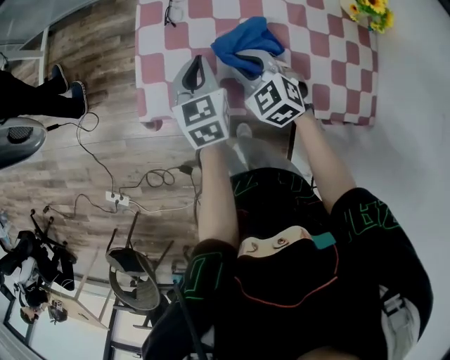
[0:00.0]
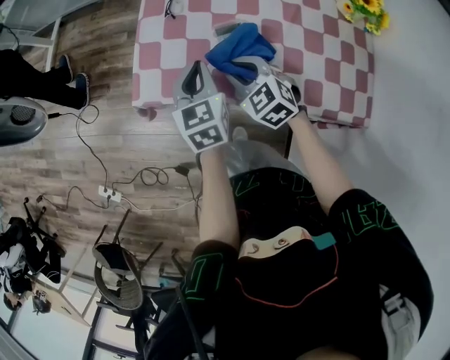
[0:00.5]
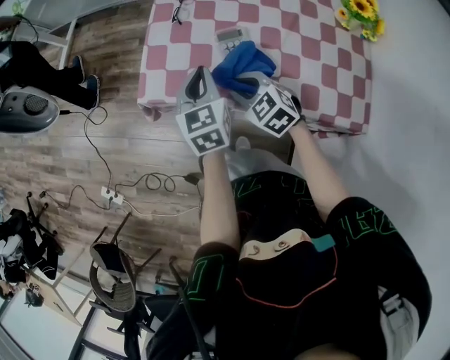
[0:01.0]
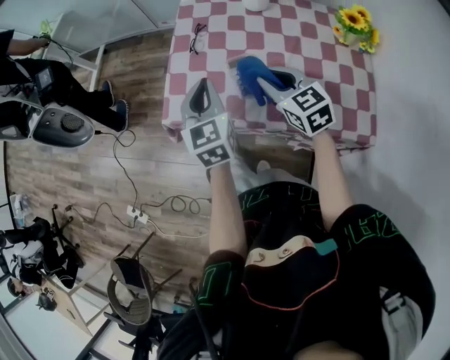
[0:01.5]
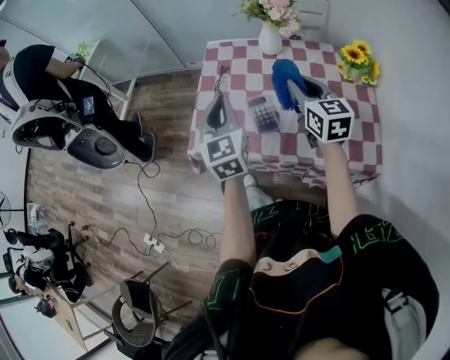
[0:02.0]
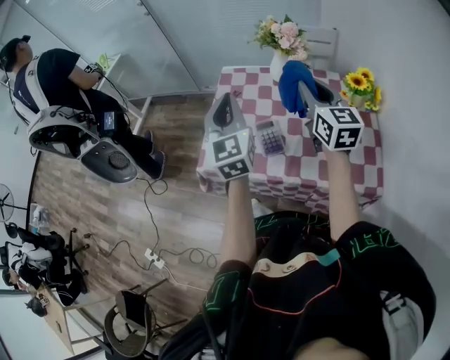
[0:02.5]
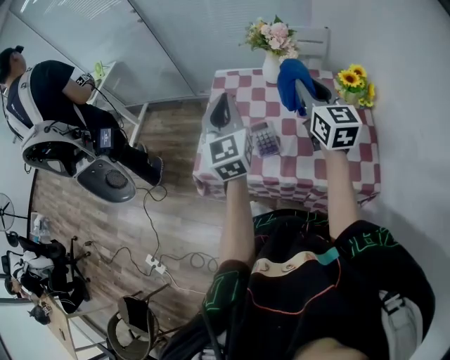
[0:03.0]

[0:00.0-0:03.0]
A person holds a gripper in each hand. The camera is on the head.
0:00.0 to 0:01.5: The left gripper goes some 15 cm upward and backward; the right gripper heads upward, to the right and backward, covering some 15 cm, and rotates about 30 degrees.
0:01.5 to 0:03.0: The left gripper heads upward, covering roughly 15 cm, and turns by about 20 degrees, while the right gripper heads upward and to the right, covering about 20 cm, and swivels approximately 30 degrees.

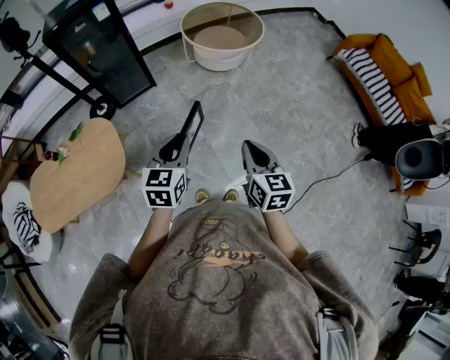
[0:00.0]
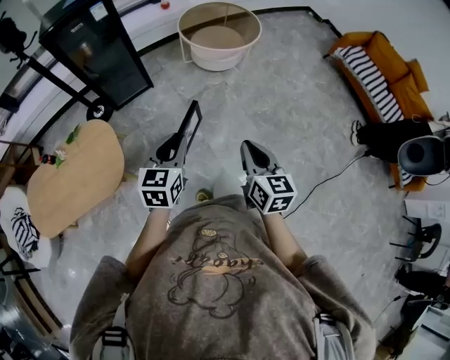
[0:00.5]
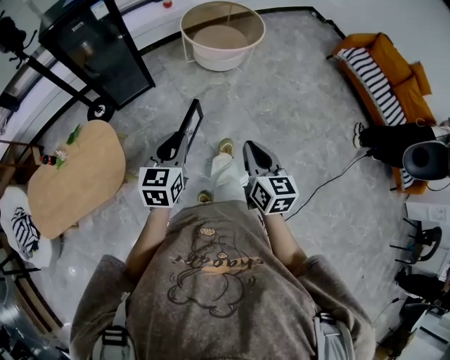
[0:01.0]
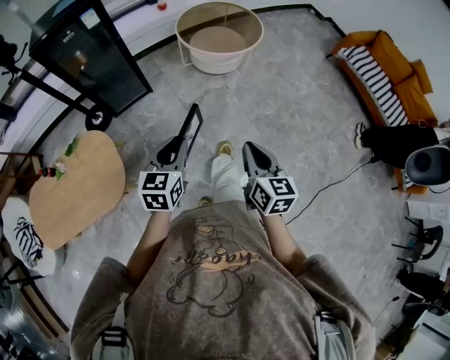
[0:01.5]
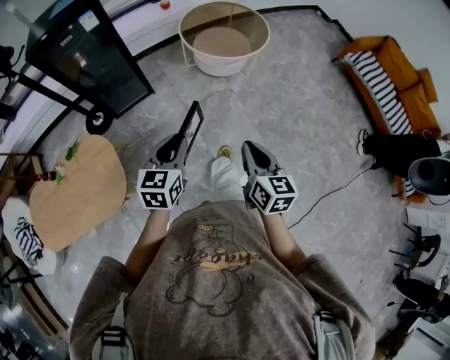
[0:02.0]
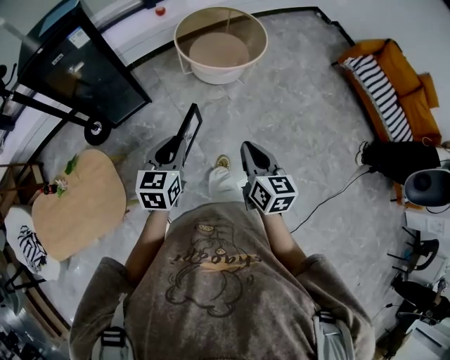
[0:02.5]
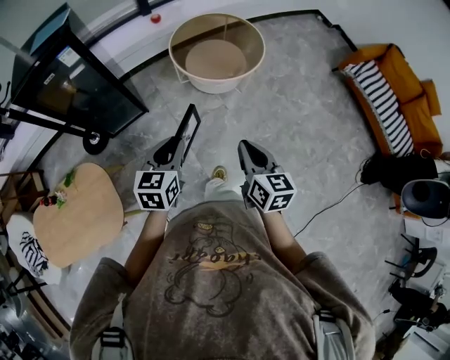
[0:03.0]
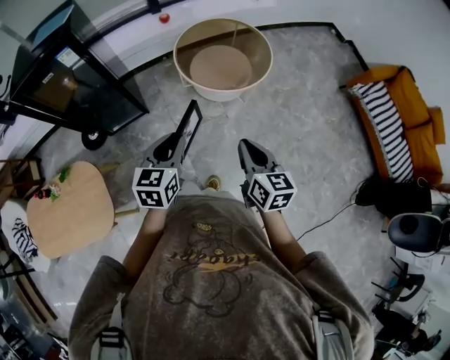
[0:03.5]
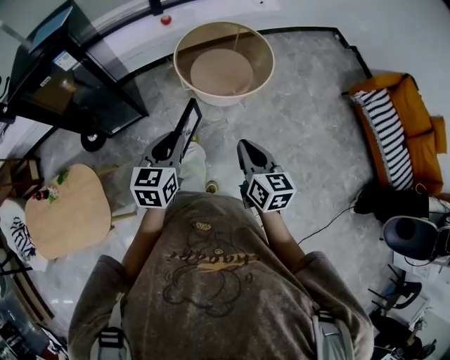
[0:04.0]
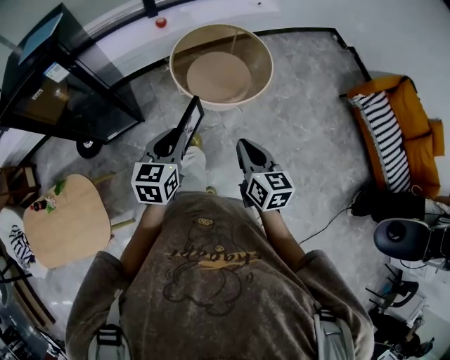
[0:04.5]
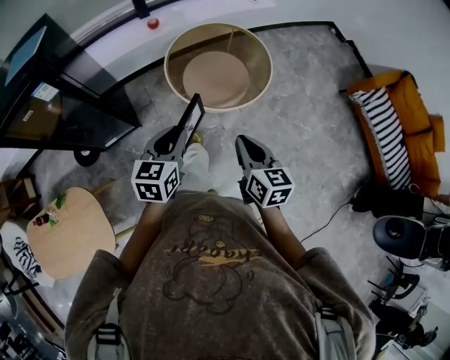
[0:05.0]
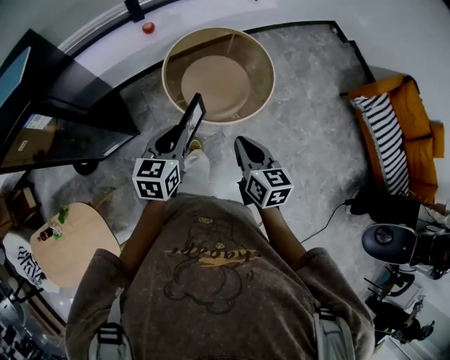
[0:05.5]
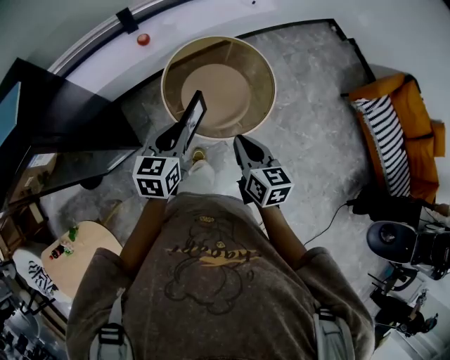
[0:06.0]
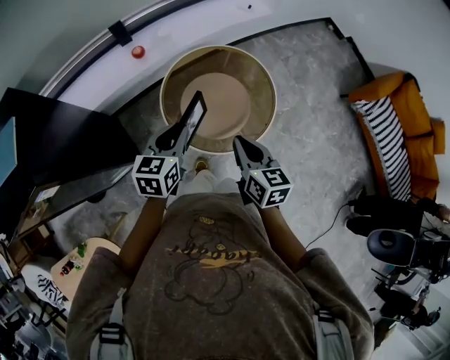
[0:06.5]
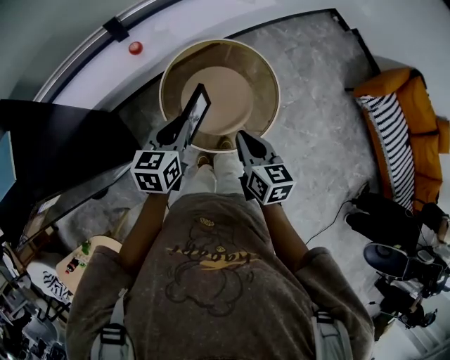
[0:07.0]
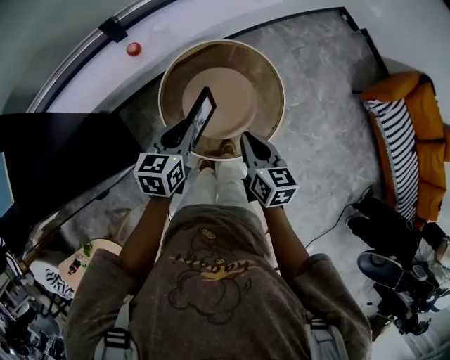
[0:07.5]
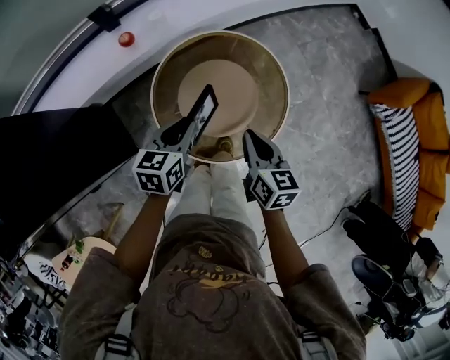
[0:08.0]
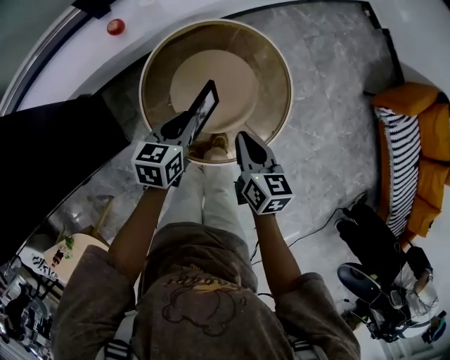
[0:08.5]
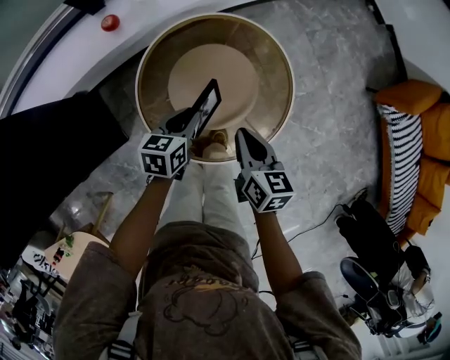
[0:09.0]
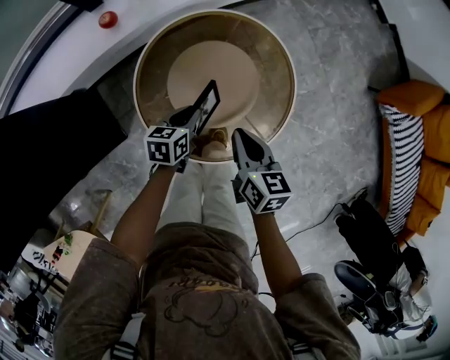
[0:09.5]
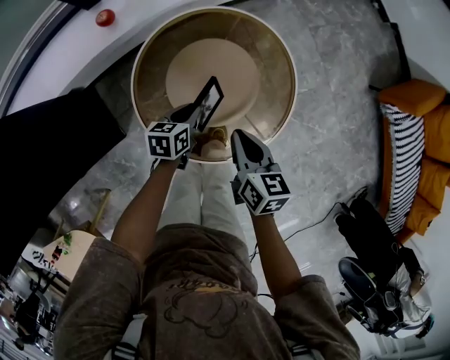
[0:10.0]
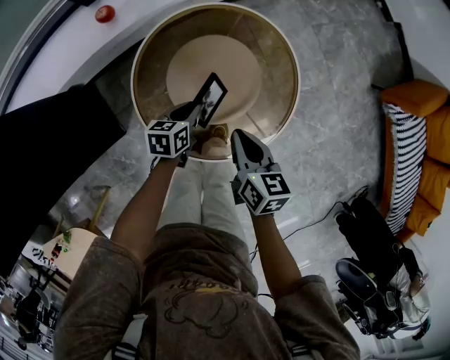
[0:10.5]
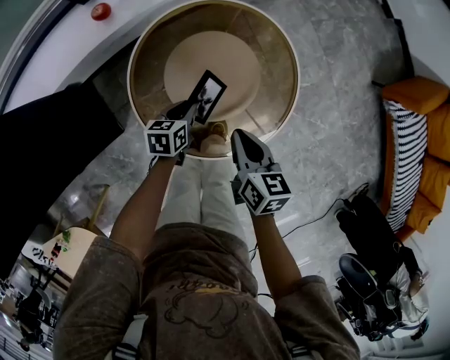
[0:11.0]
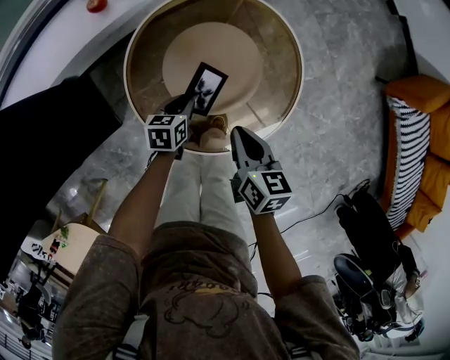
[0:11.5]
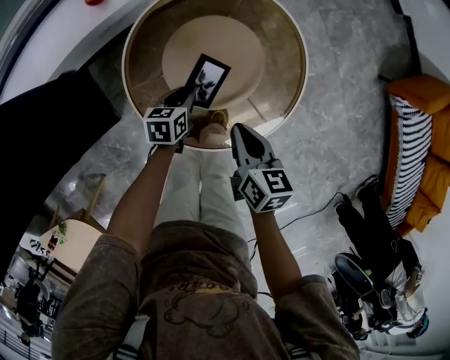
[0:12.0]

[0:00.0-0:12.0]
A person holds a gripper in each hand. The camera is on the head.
0:00.0 to 0:02.0: Both grippers move forward, approximately 15 cm.
0:02.0 to 0:04.0: Both grippers move forward, approximately 25 cm.
0:04.0 to 0:06.0: Both grippers travel together forward, some 35 cm.
0:06.0 to 0:08.0: The grippers both shift forward and downward by approximately 20 cm.
0:08.0 to 0:10.0: The right gripper heads downward, covering approximately 10 cm, while the left gripper travels downward by about 20 cm.
0:10.0 to 0:12.0: The right gripper ends up about 5 cm from where it was; the left gripper moves downward, some 5 cm.

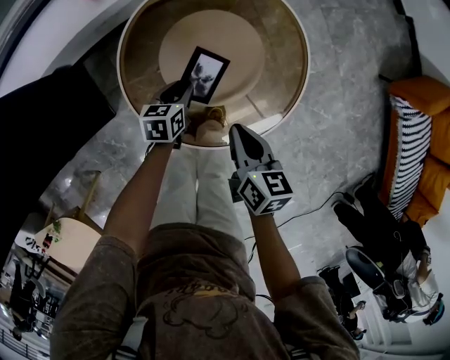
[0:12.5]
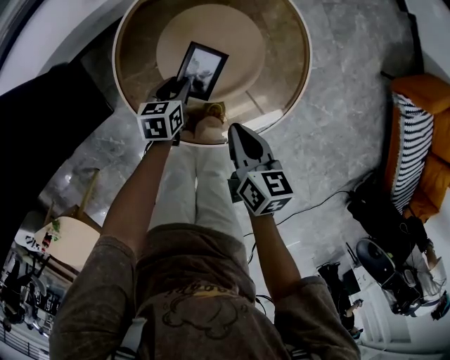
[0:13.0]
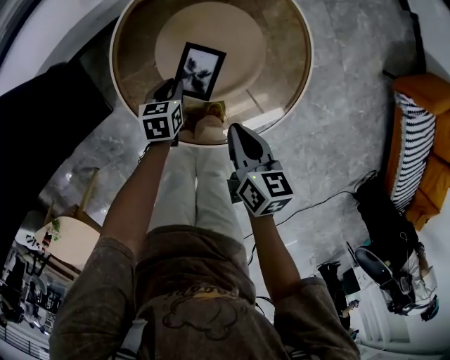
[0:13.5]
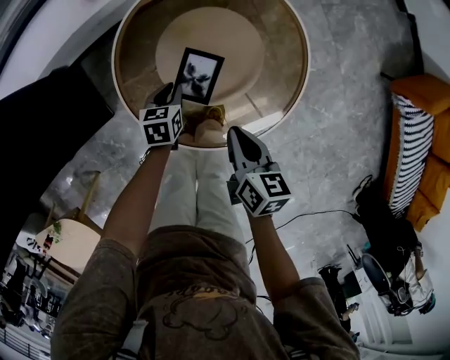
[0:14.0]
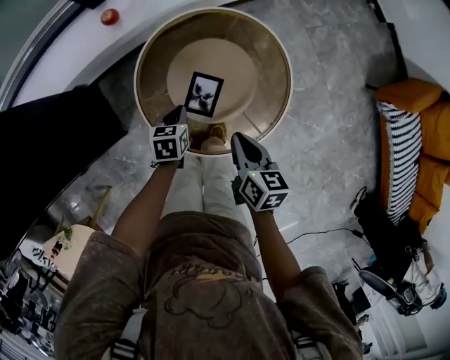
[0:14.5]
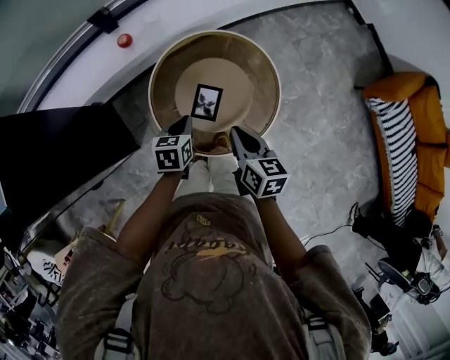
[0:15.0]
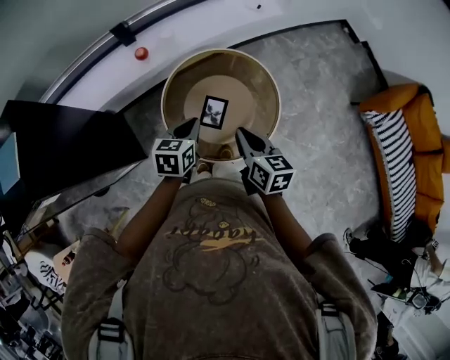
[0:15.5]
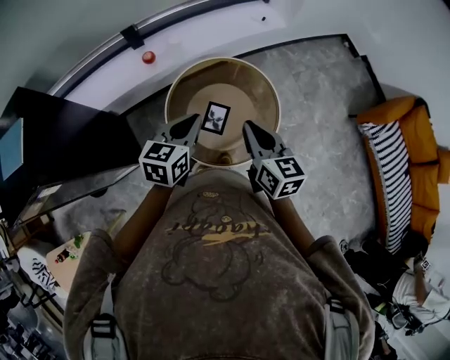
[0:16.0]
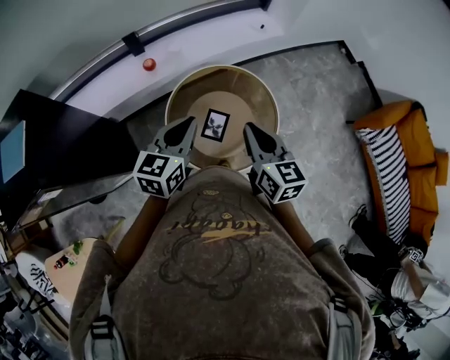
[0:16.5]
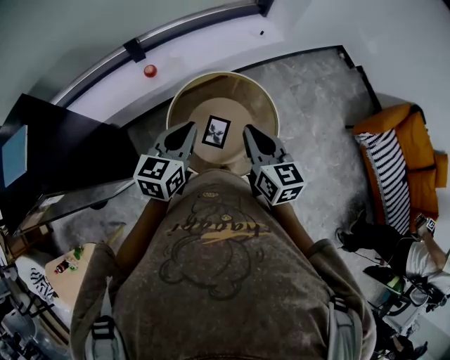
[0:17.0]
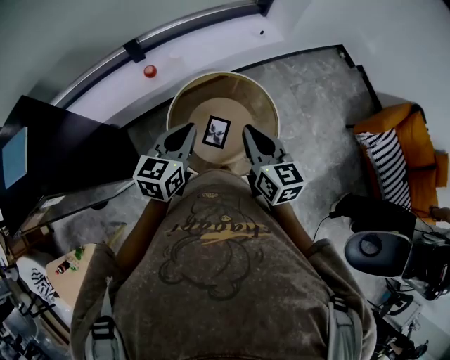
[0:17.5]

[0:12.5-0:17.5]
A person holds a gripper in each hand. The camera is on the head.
0:12.5 to 0:15.0: Both grippers travel together upward, roughly 20 cm. The left gripper closes.
0:15.0 to 0:17.5: The grippers both shift upward by approximately 20 cm. The left gripper turns by some 30 degrees. The right gripper rotates approximately 20 degrees.

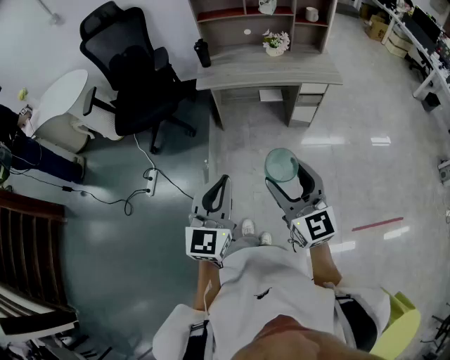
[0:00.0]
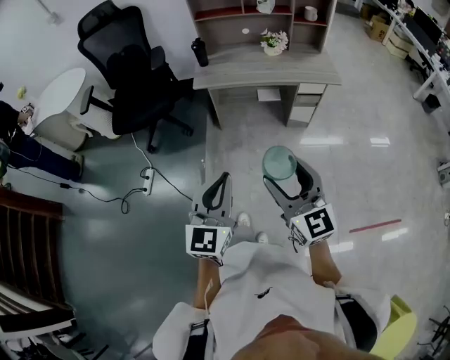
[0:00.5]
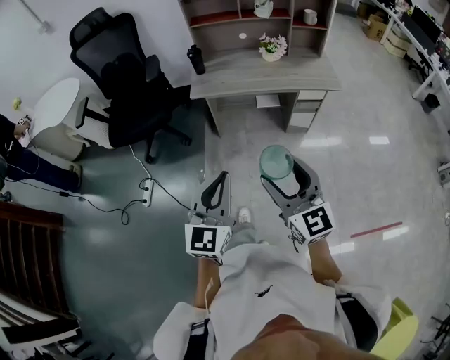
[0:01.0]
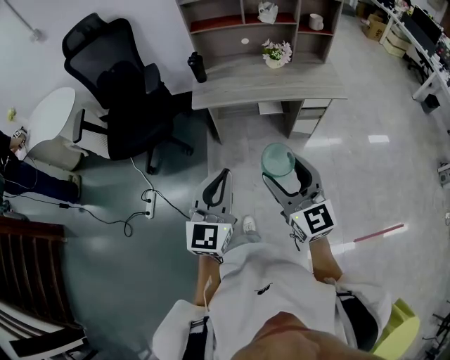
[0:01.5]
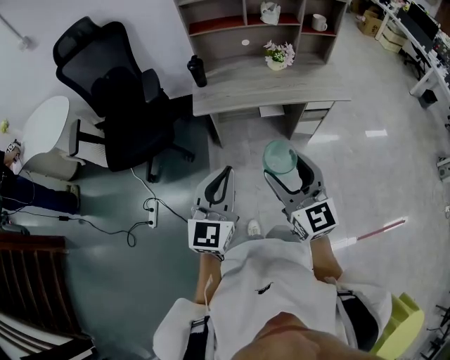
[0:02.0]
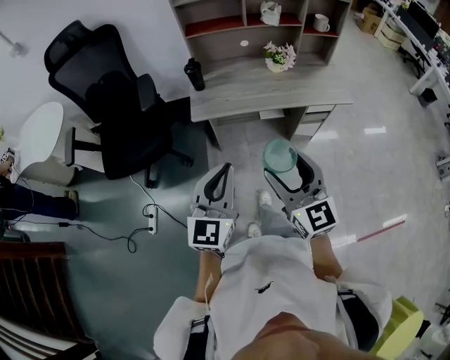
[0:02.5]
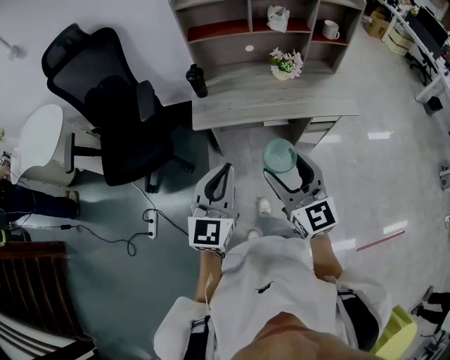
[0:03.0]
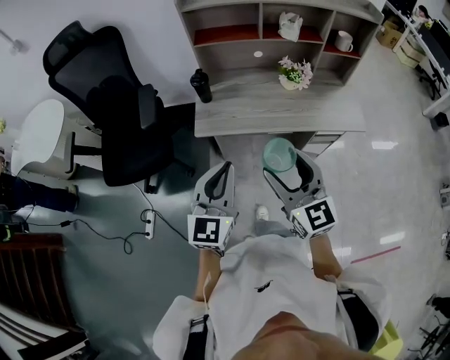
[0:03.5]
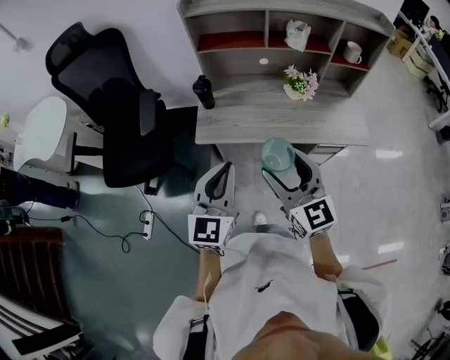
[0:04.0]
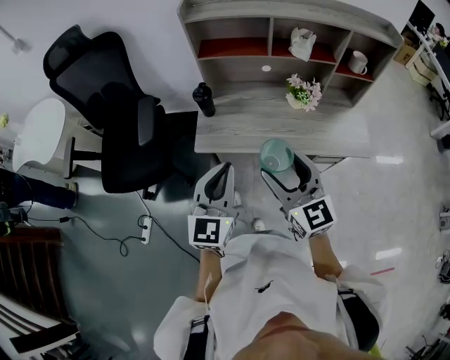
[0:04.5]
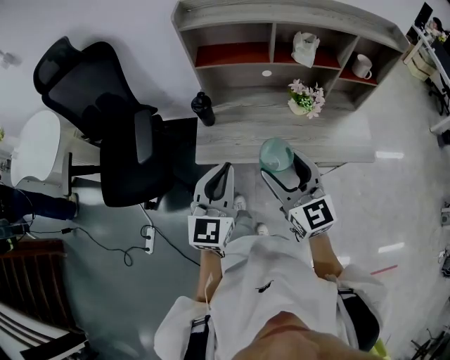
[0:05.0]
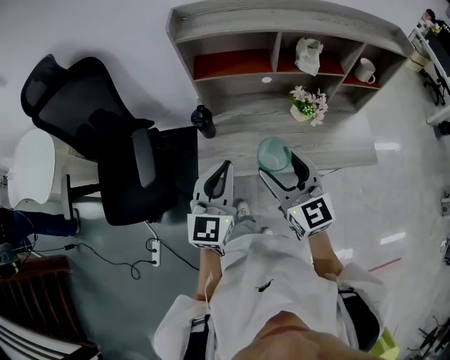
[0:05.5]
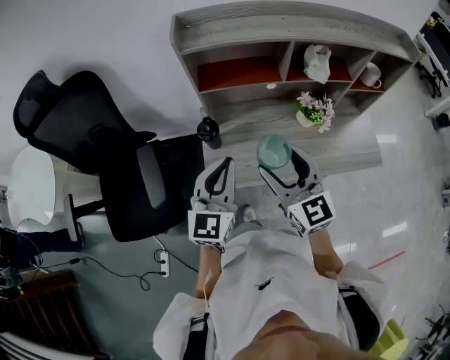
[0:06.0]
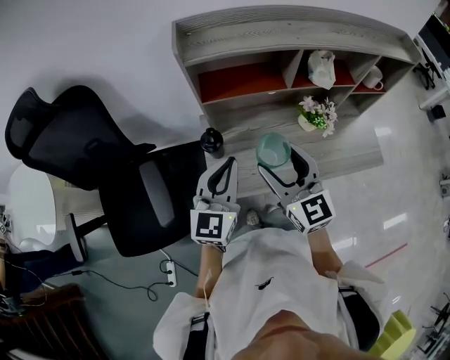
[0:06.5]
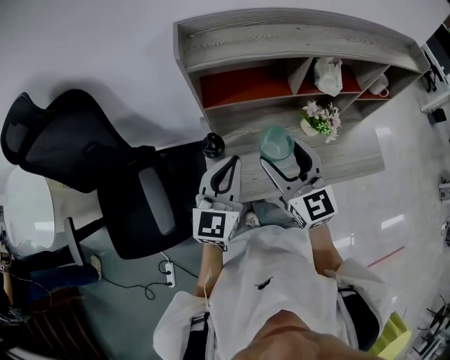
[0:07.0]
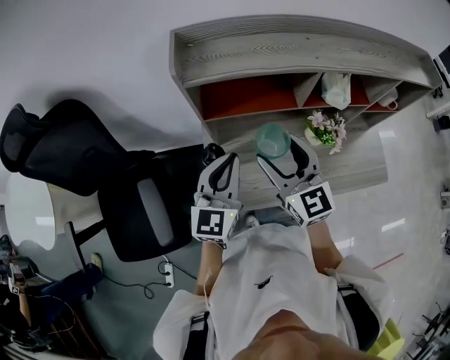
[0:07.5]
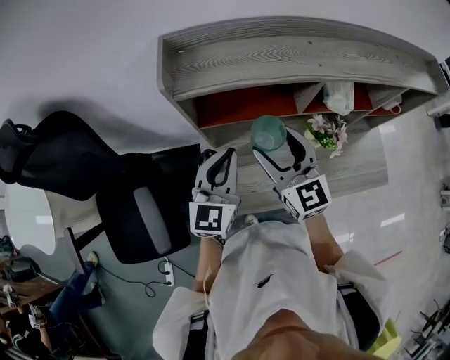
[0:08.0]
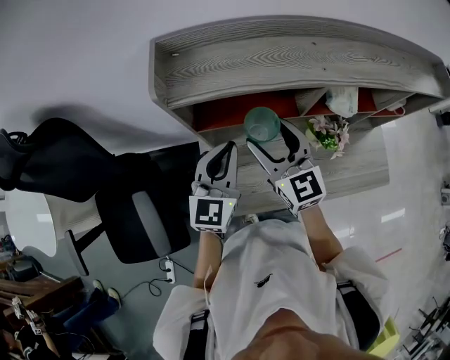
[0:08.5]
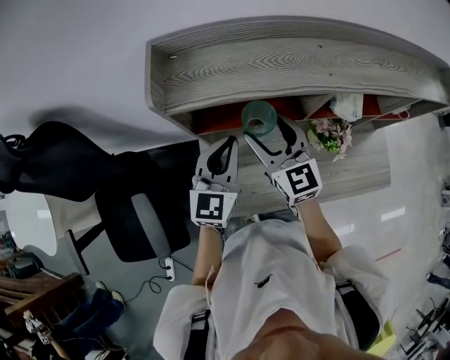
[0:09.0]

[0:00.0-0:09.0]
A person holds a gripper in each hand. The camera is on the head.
0:00.0 to 0:02.0: Both grippers travel together forward, roughly 25 cm.
0:02.0 to 0:04.5: Both grippers move forward, roughly 30 cm.
0:04.5 to 0:07.0: Both grippers move forward, some 30 cm.
0:07.0 to 0:09.0: Both grippers travel together forward, approximately 15 cm.
